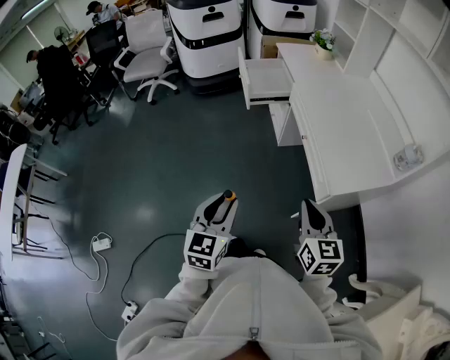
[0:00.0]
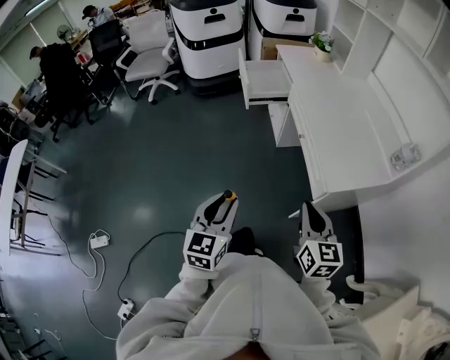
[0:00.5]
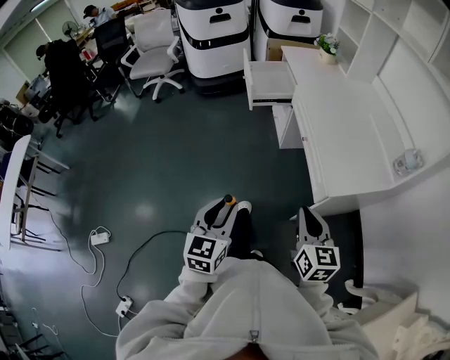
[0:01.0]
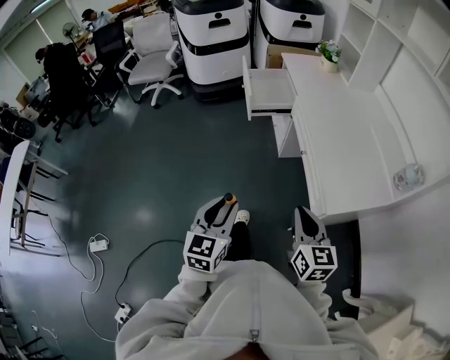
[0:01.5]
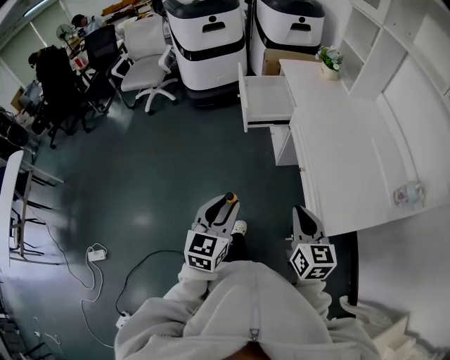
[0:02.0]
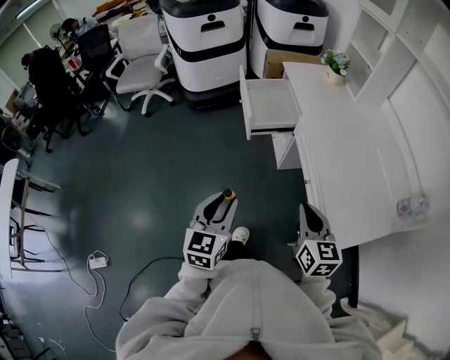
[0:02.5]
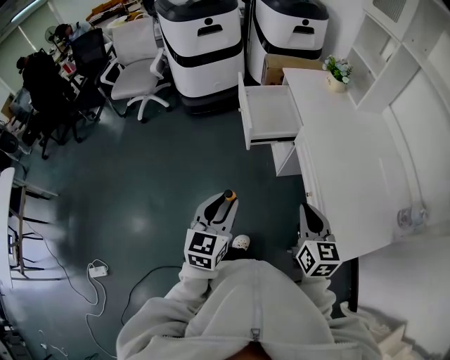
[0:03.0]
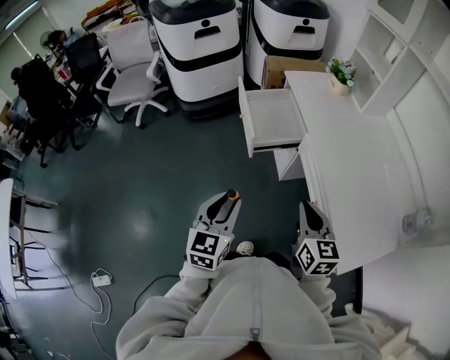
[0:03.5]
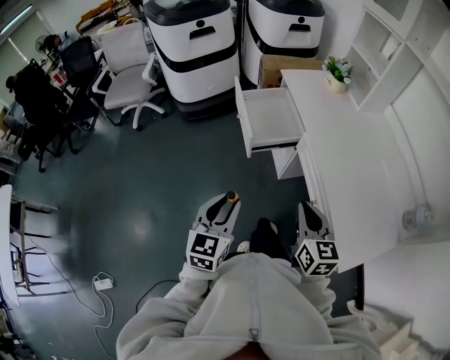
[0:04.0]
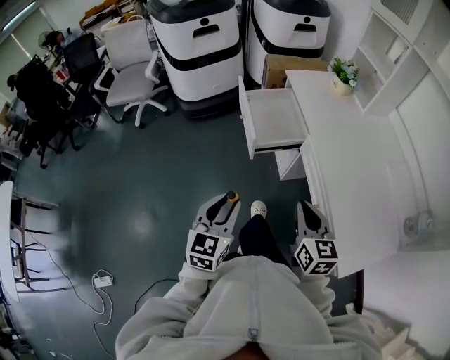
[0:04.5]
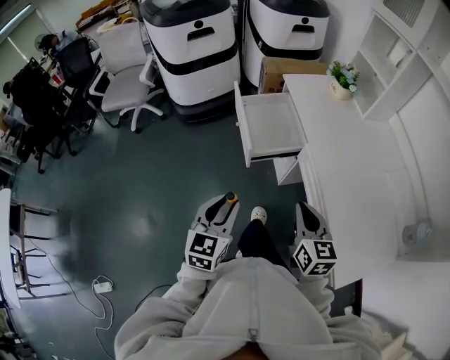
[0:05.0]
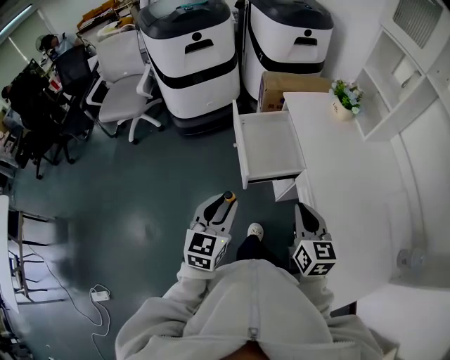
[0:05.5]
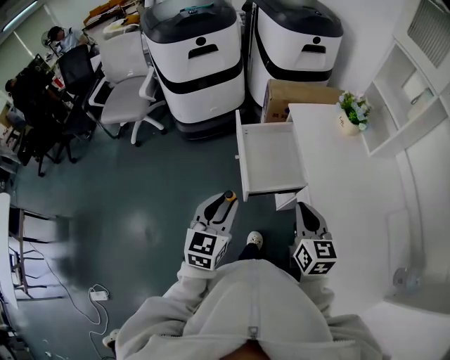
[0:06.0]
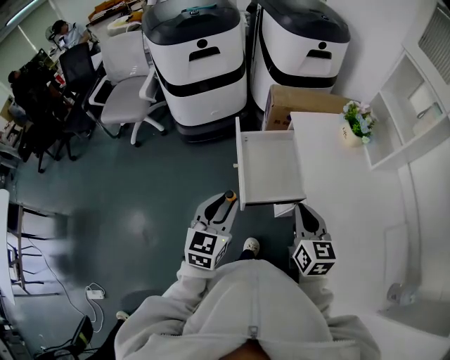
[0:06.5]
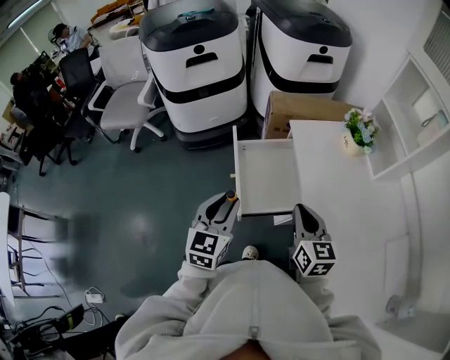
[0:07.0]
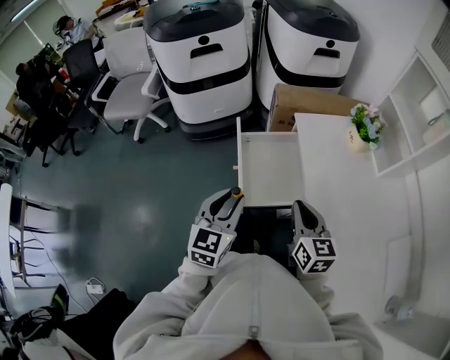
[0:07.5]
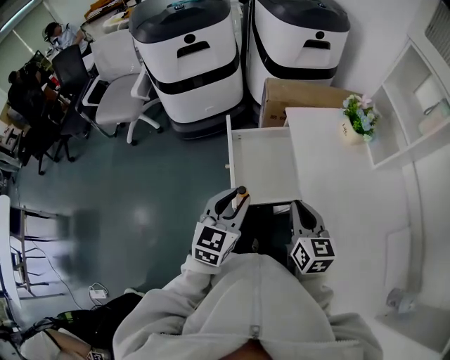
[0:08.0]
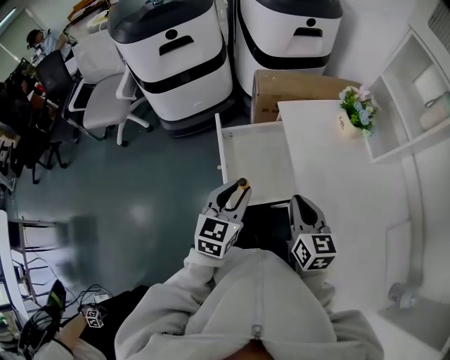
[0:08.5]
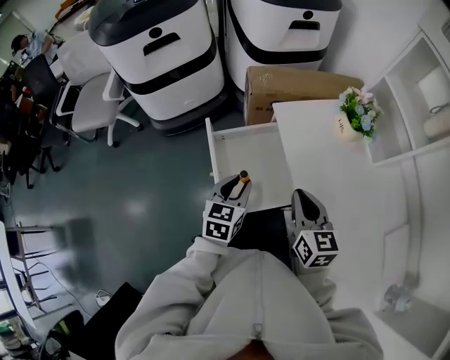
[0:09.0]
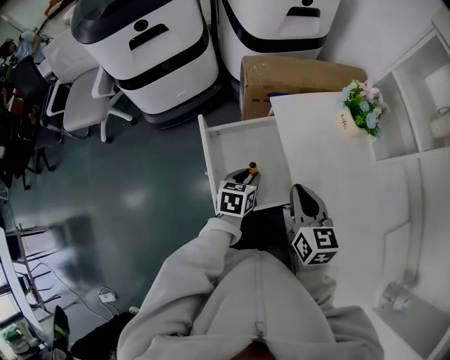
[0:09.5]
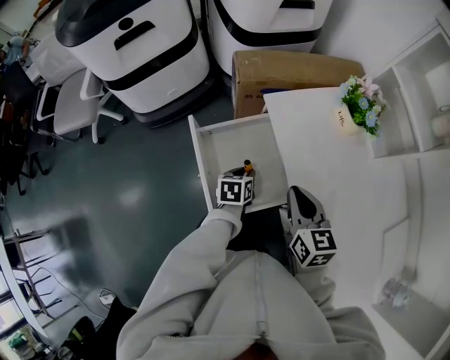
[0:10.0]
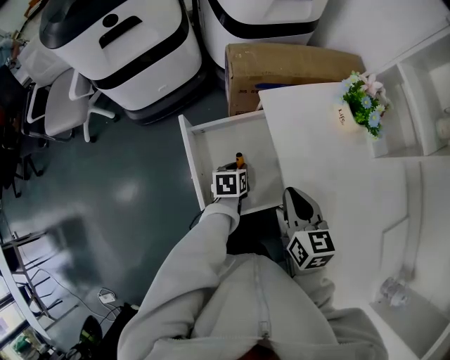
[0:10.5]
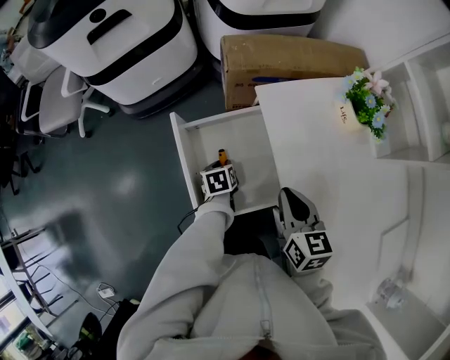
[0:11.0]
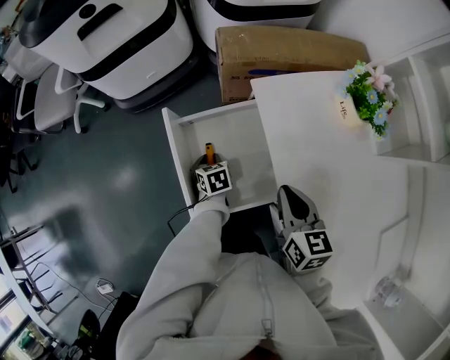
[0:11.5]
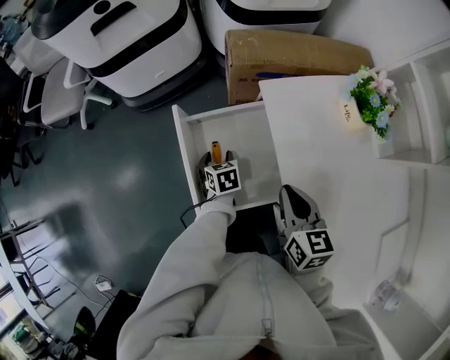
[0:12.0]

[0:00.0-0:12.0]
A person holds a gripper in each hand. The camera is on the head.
0:00.0 to 0:02.0: The two grippers go about 15 cm forward.
0:02.0 to 0:04.0: The two grippers go roughly 15 cm forward.
0:04.0 to 0:06.0: The two grippers go roughly 20 cm forward.
0:06.0 to 0:08.0: The left gripper moves forward and to the right, some 10 cm. Meanwhile the right gripper is displaced forward by about 10 cm.
0:08.0 to 0:10.0: The right gripper shifts approximately 10 cm forward. Meanwhile the left gripper moves downward and forward, about 30 cm, and tilts its fingers some 30 degrees downward.
0:10.0 to 0:12.0: The left gripper moves about 10 cm, swivels approximately 30 degrees, and opens.

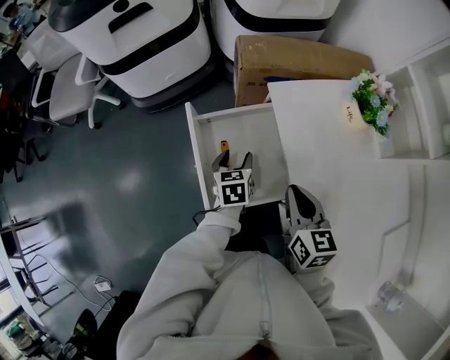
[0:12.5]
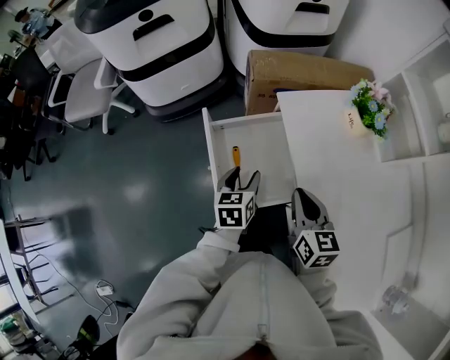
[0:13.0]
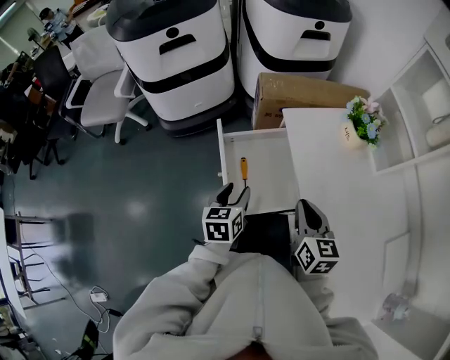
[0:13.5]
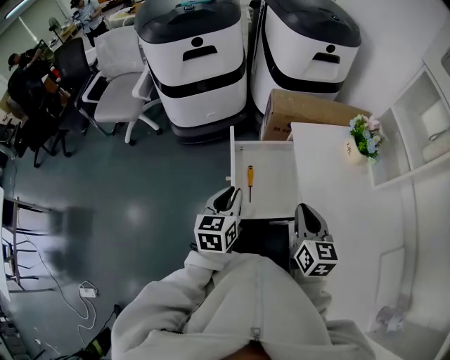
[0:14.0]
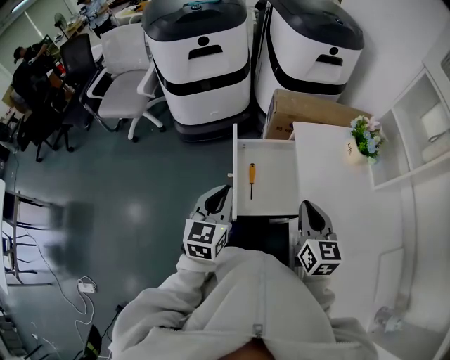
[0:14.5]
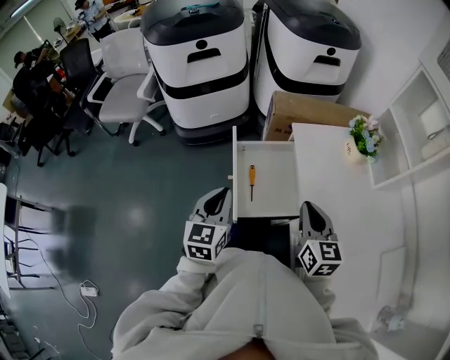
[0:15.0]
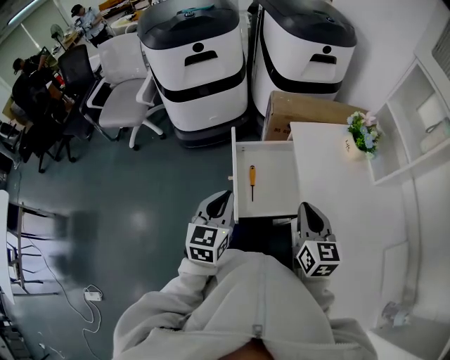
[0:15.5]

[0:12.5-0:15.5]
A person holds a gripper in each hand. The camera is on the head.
0:12.5 to 0:14.0: The right gripper moves upward and backward, about 10 cm; the left gripper heads upward, backward and to the left, covering about 25 cm, swivels about 20 degrees, and closes.
0:14.0 to 0:15.5: The left gripper ends up roughly 5 cm from where it was.

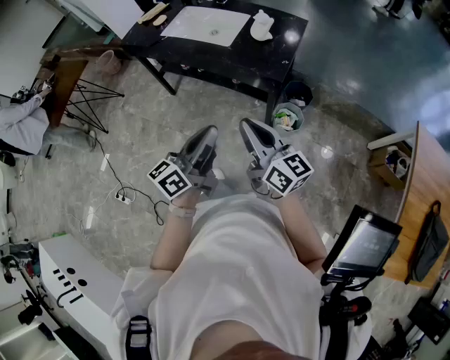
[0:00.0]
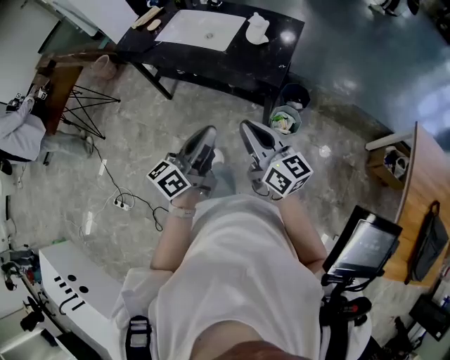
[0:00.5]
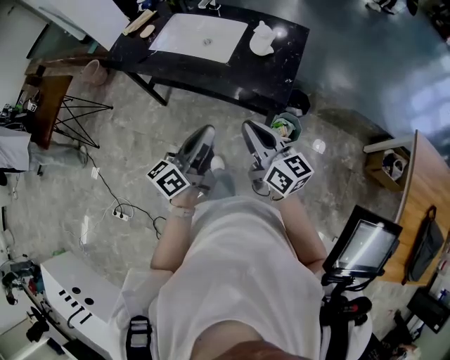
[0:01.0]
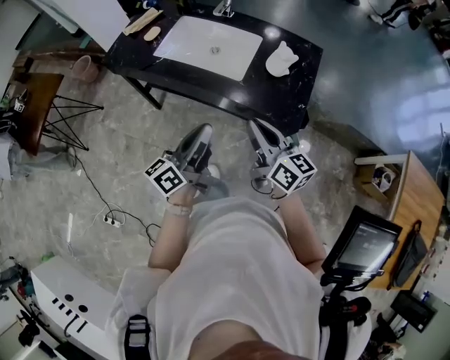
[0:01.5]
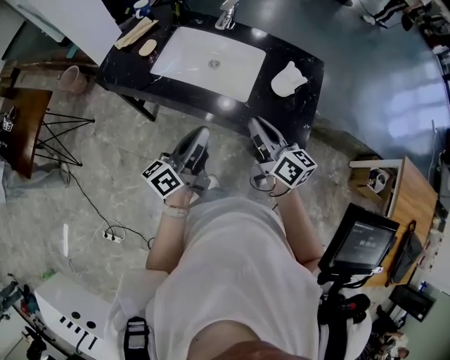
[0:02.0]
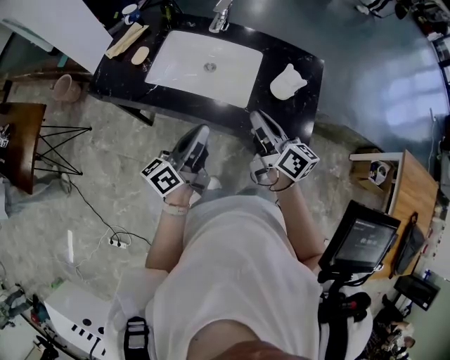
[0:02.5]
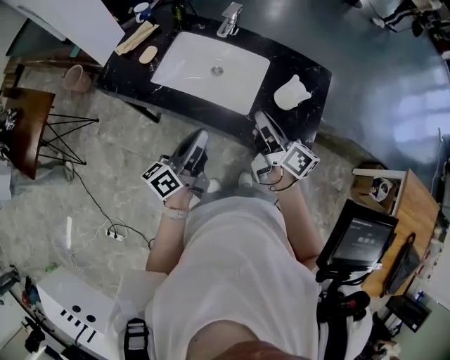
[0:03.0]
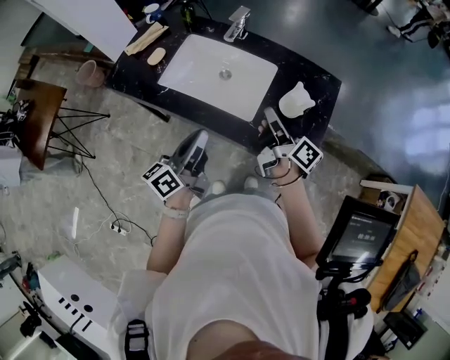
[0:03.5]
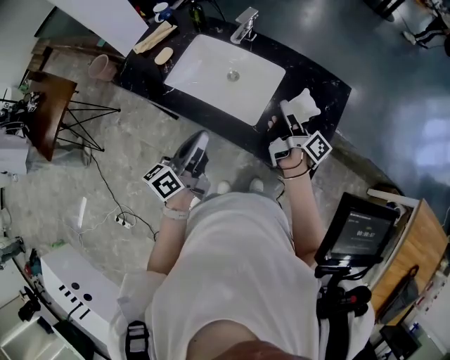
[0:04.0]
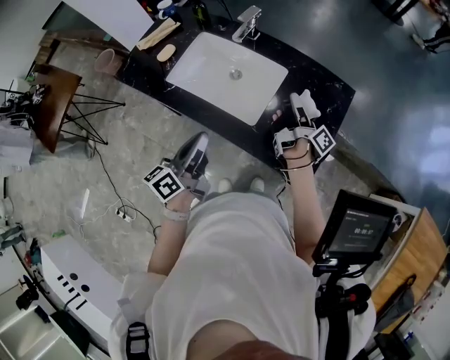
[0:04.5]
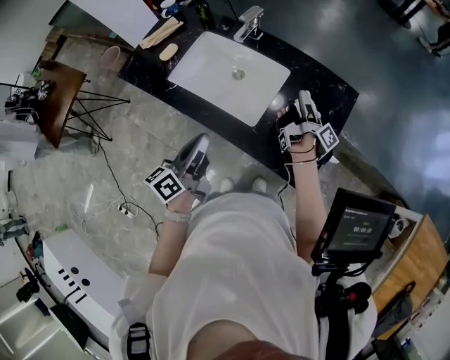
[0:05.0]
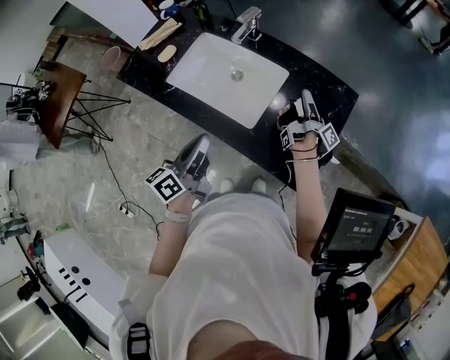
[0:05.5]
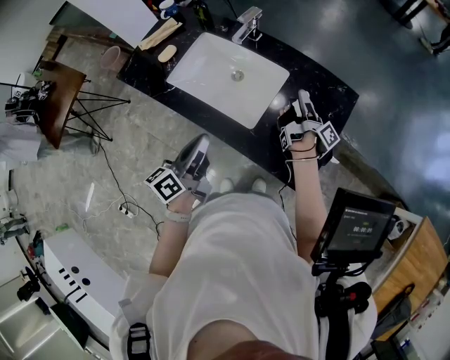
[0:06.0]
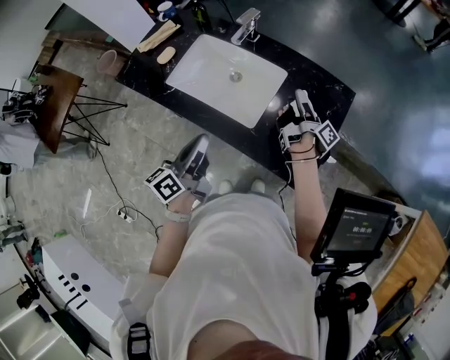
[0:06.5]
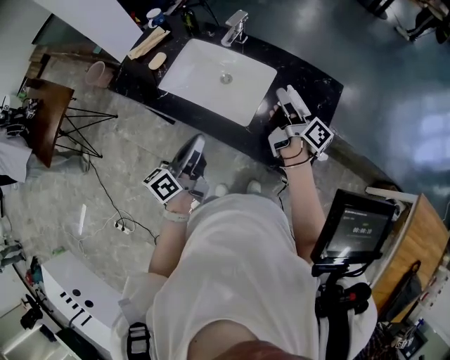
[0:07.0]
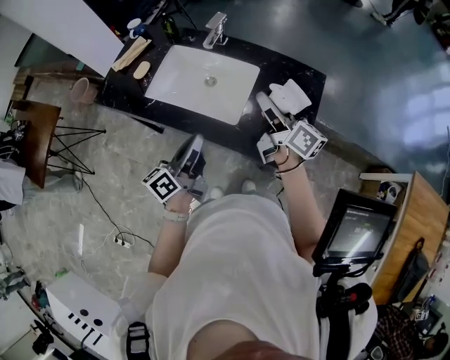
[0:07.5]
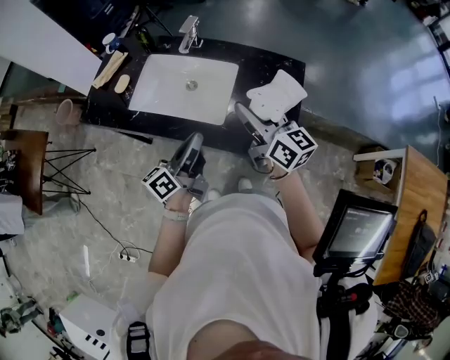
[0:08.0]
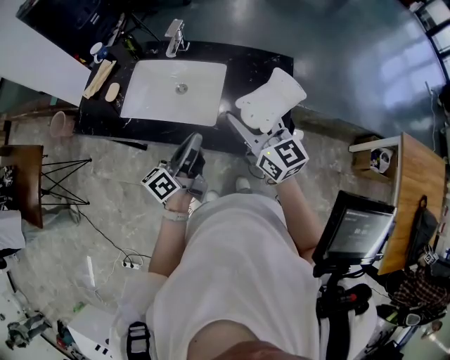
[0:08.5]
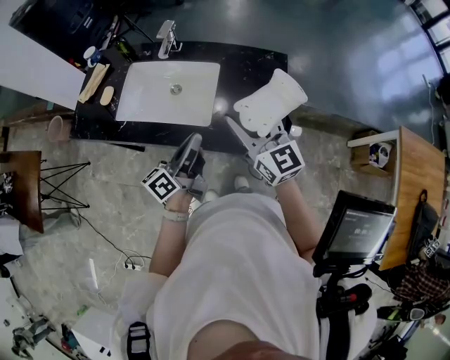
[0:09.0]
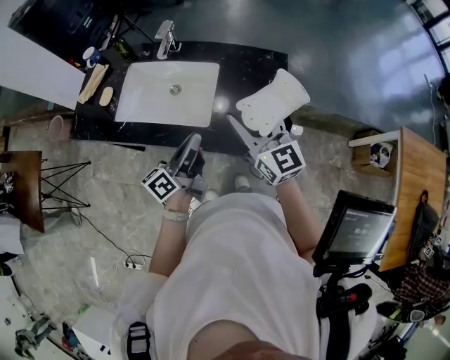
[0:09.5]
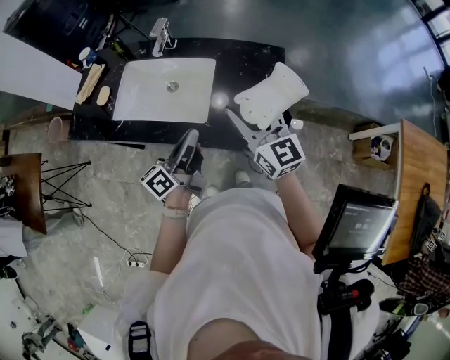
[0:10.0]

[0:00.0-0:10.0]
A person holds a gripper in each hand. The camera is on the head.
0:00.0 to 0:02.0: The right gripper heads forward, covering approximately 35 cm. Meanwhile the left gripper moves forward and to the left, roughly 40 cm.
0:02.0 to 0:04.0: The left gripper shifts approximately 10 cm forward; the right gripper is displaced forward and to the right by roughly 20 cm, rolls clockwise, seen from behind, by some 40 degrees, and opens.
0:04.0 to 0:06.0: The right gripper heads forward, to the right and downward, covering some 10 cm.
0:06.0 to 0:08.0: The right gripper travels upward and backward by roughly 25 cm, and twists approximately 70 degrees counterclockwise, seen from behind, while the left gripper changes its angle by approximately 20 degrees.
0:08.0 to 0:10.0: The right gripper swivels approximately 20 degrees.

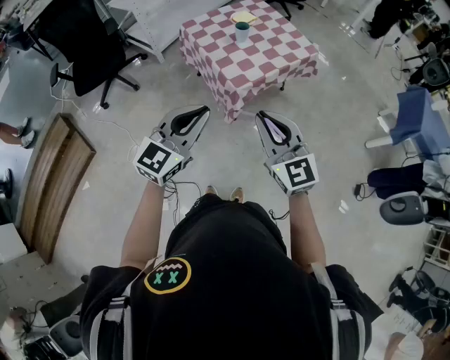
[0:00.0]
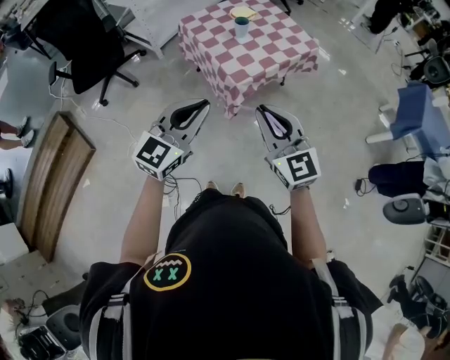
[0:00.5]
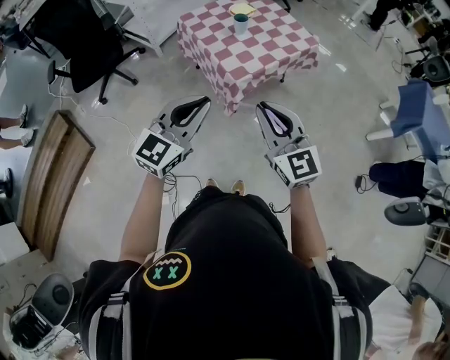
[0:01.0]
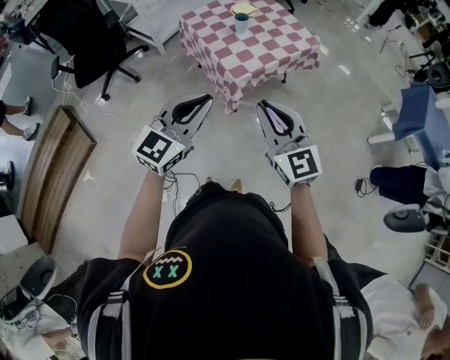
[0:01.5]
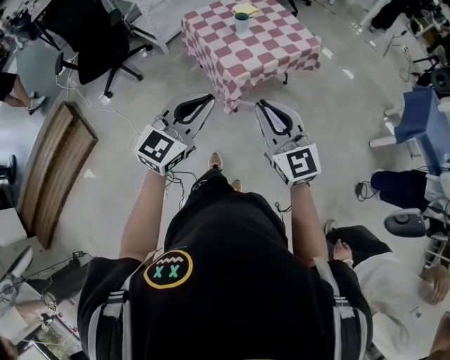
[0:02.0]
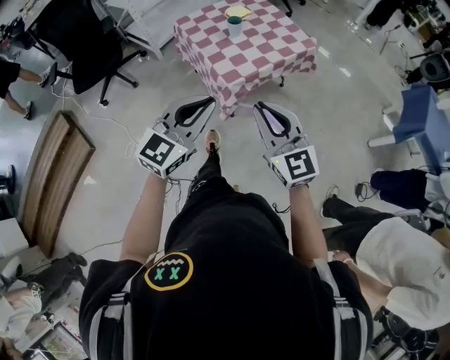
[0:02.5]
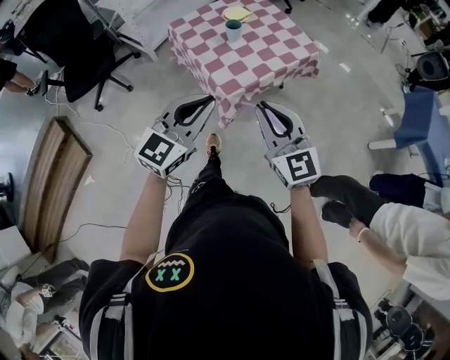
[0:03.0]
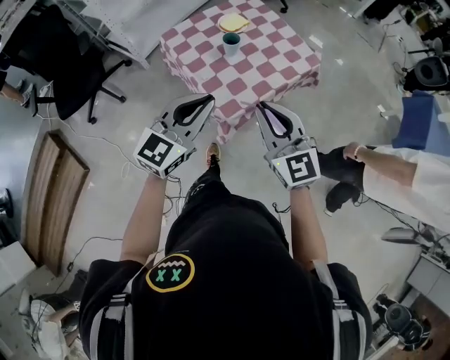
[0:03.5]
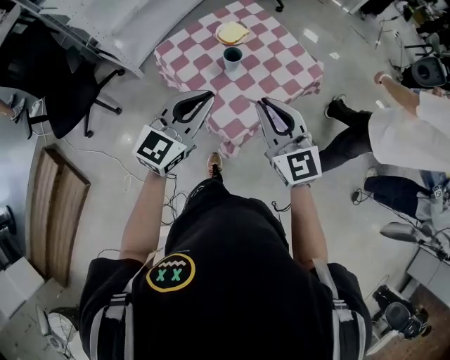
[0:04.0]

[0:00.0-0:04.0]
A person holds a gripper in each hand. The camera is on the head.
0:00.0 to 0:02.0: The left gripper shifts about 5 cm to the right.
0:02.0 to 0:04.0: The two grippers go approximately 40 cm forward.
